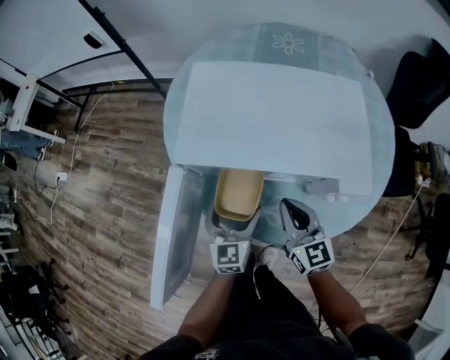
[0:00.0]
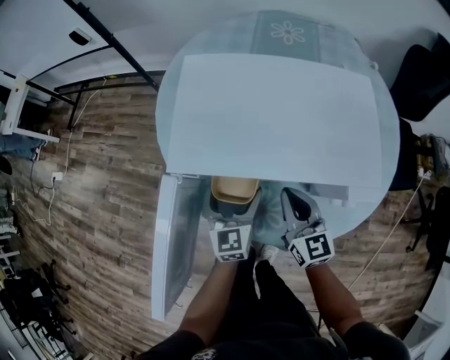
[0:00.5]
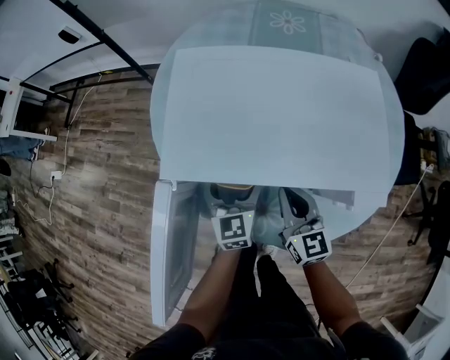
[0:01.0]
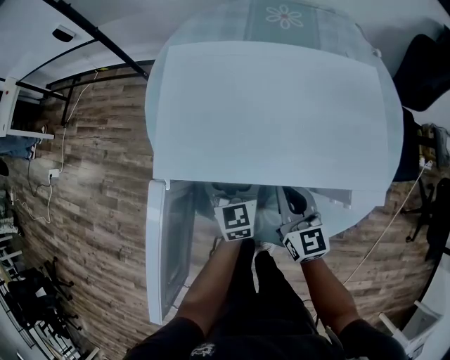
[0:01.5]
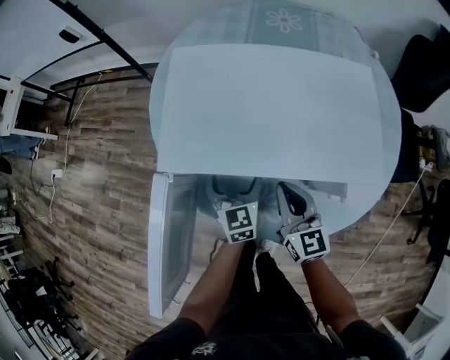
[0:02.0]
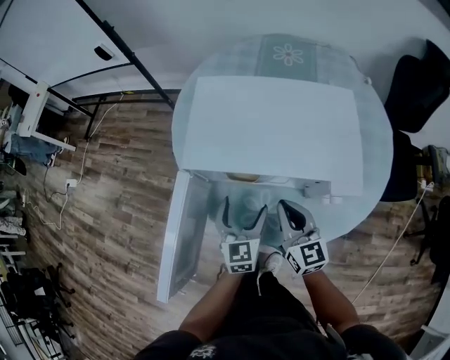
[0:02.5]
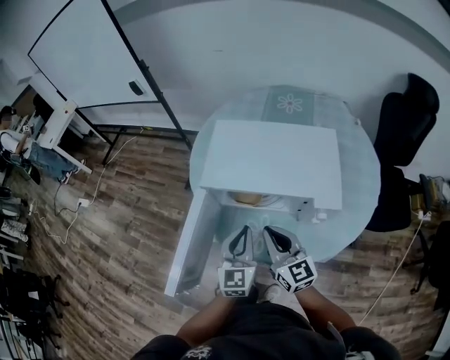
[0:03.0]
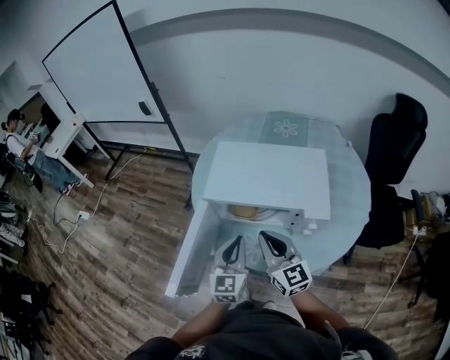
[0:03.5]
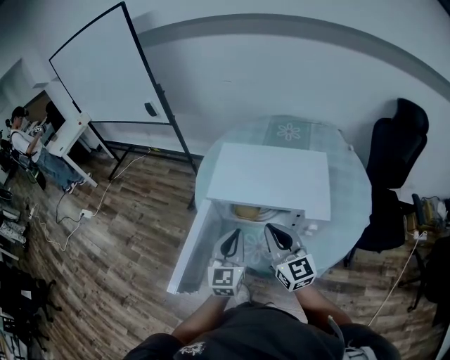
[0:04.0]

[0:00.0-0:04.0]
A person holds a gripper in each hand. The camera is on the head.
0:00.0 to 0:02.0: The right gripper shifts by approximately 5 cm. The left gripper travels forward by some 10 cm.
0:02.0 to 0:04.0: Both grippers travel together upward and backward, approximately 25 cm. The right gripper changes its angle by roughly 20 degrees. Meanwhile the left gripper closes up.

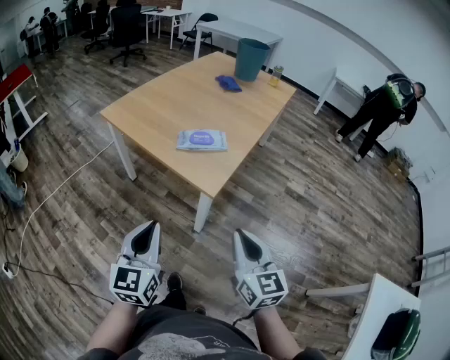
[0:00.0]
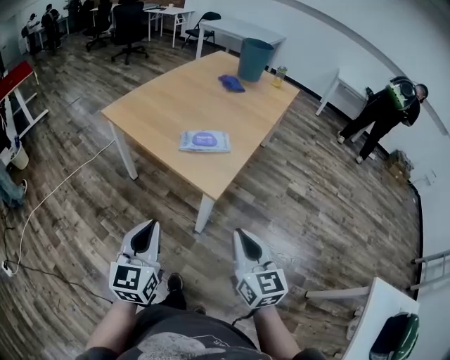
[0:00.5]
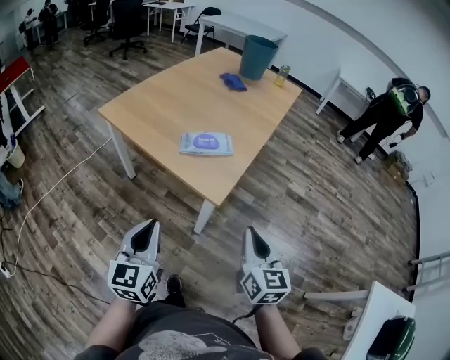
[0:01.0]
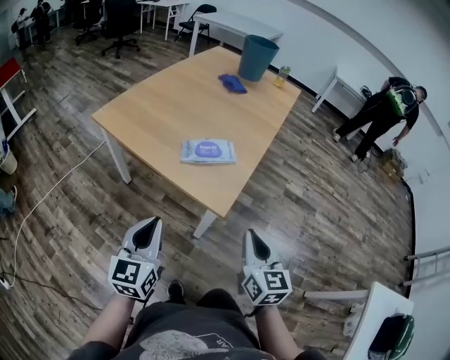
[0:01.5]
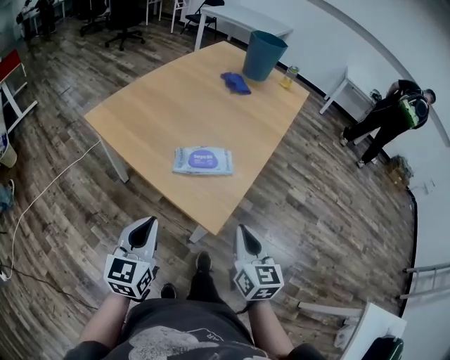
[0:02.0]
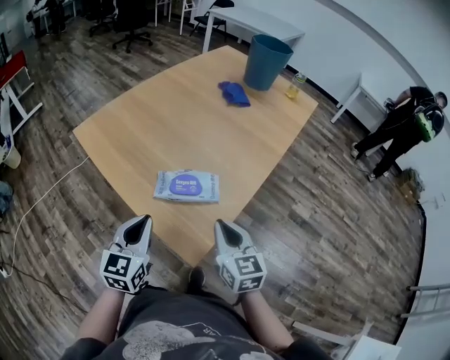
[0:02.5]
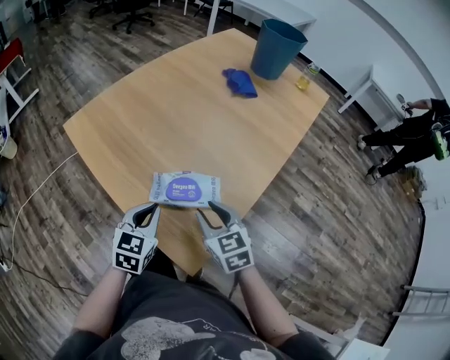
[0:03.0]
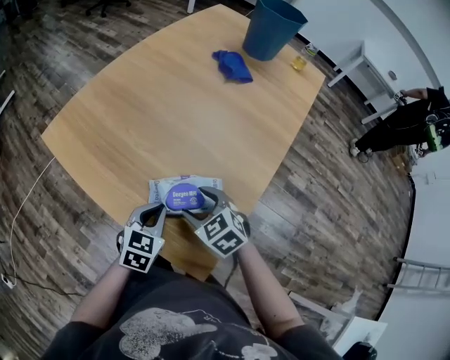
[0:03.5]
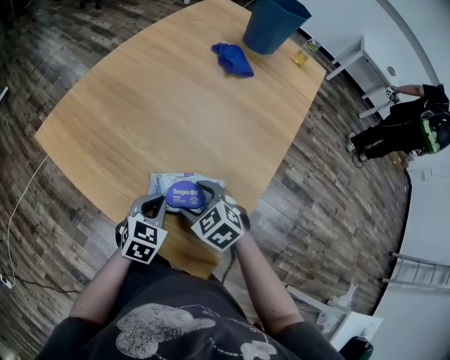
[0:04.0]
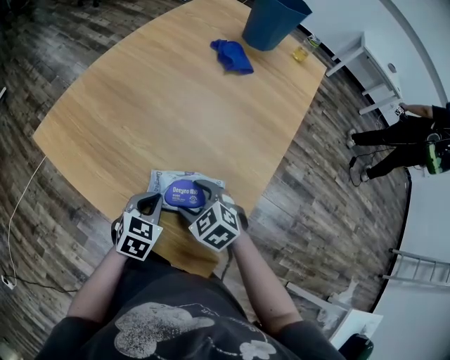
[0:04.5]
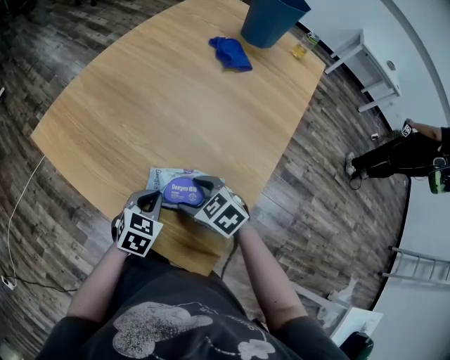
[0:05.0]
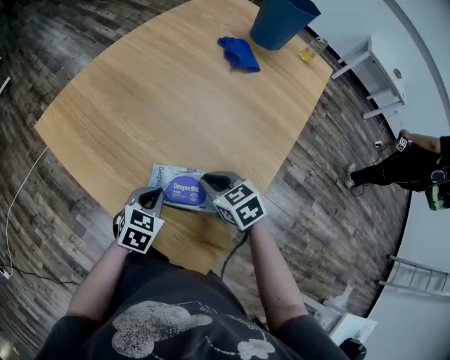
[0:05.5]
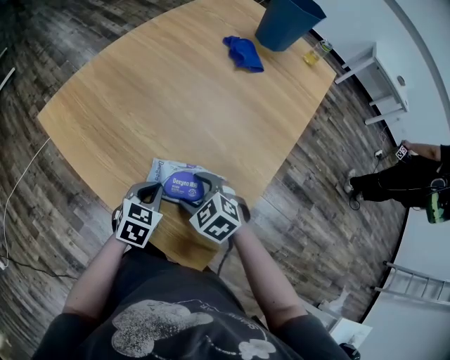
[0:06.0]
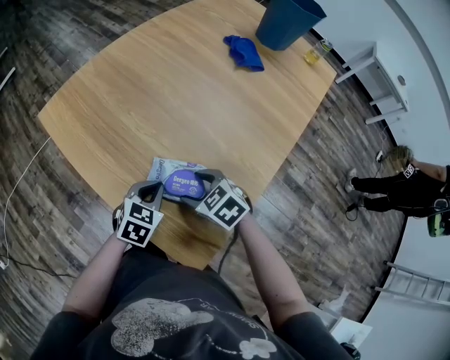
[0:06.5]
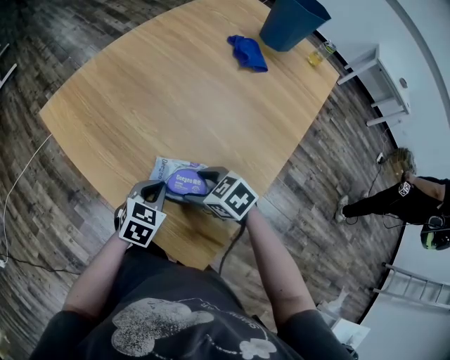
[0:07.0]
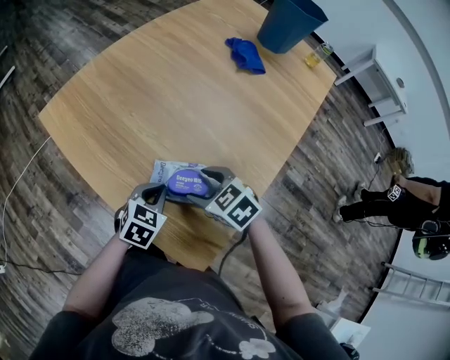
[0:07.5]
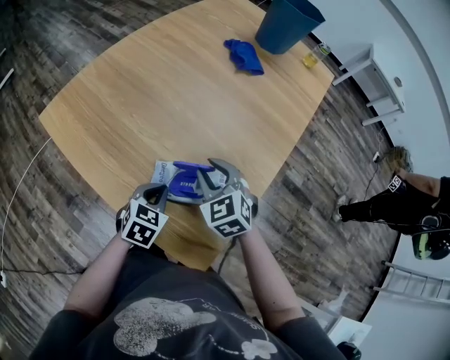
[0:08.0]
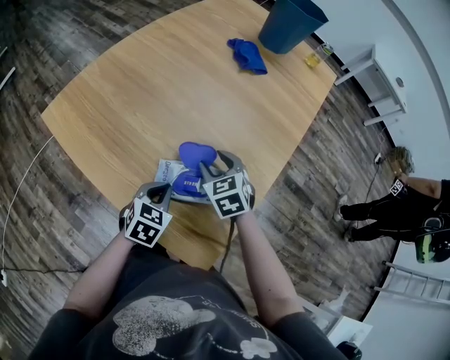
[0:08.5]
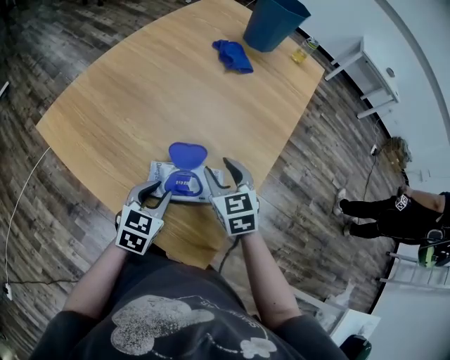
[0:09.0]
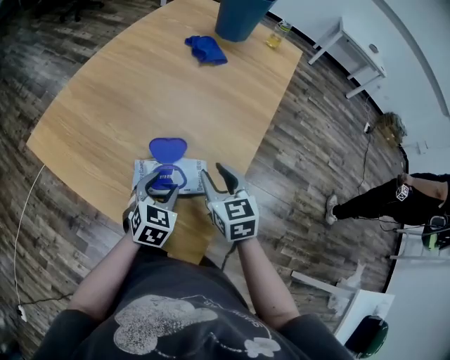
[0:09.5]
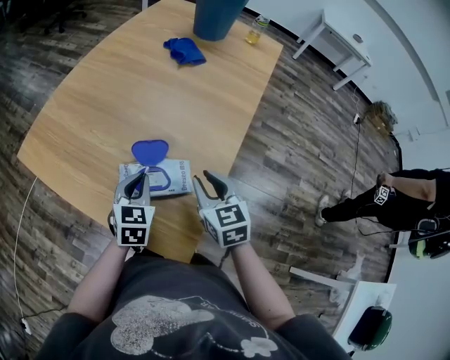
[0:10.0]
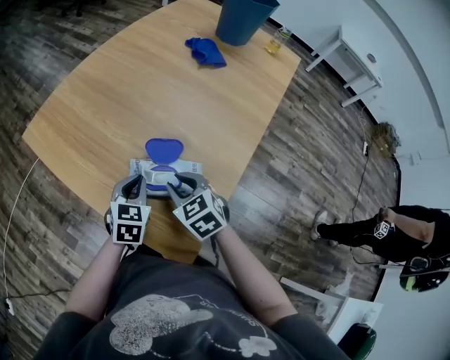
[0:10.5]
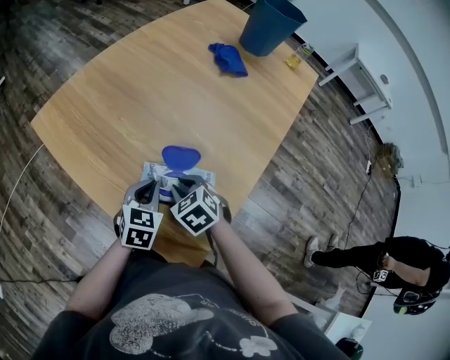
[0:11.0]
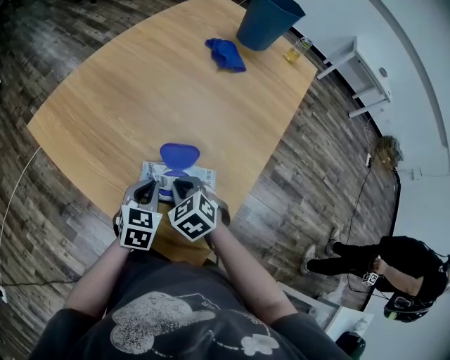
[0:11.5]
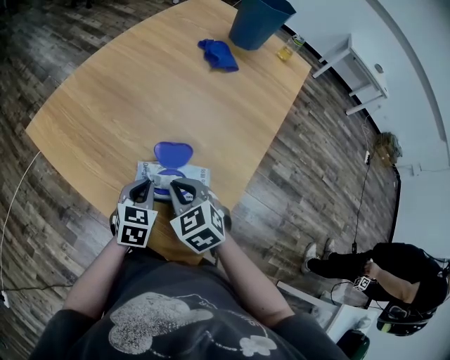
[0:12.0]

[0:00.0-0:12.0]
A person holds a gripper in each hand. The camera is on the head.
0:00.0 to 0:02.0: Both grippers travel together forward, some 20 cm.
0:02.0 to 0:04.0: Both grippers move forward and downward, some 30 cm. The left gripper angles its fingers downward, by approximately 30 degrees. Meanwhile the right gripper angles its fingers downward, by about 40 degrees, and opens up.
0:04.0 to 0:06.0: The right gripper closes, then reopens.
0:06.0 to 0:08.0: The right gripper moves some 10 cm, rotates approximately 20 degrees, and closes its fingers.
0:08.0 to 0:10.0: The left gripper goes about 5 cm upward, and opens, then closes once more; the right gripper shifts approximately 10 cm to the right and backward, and rotates roughly 30 degrees.
0:10.0 to 0:12.0: The right gripper moves to the left, roughly 15 cm, and turns by roughly 30 degrees. The left gripper changes place by approximately 5 cm.

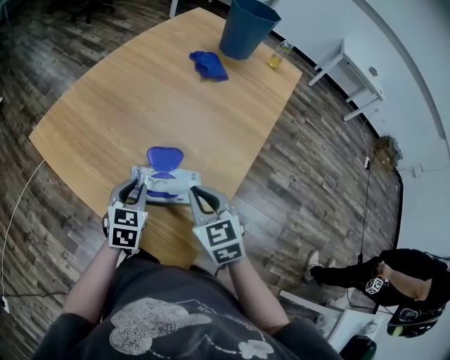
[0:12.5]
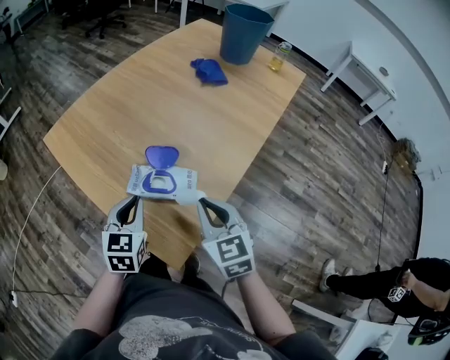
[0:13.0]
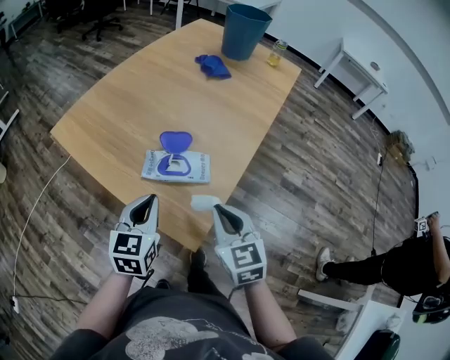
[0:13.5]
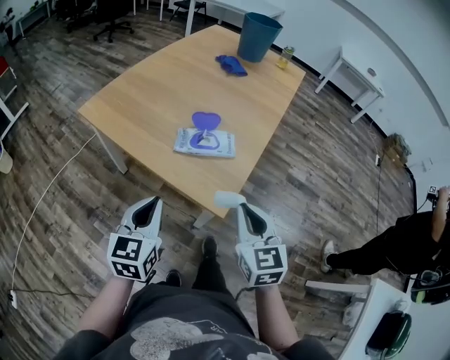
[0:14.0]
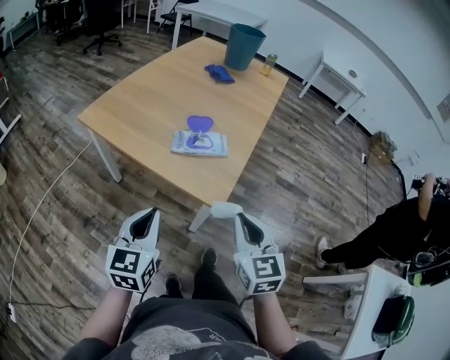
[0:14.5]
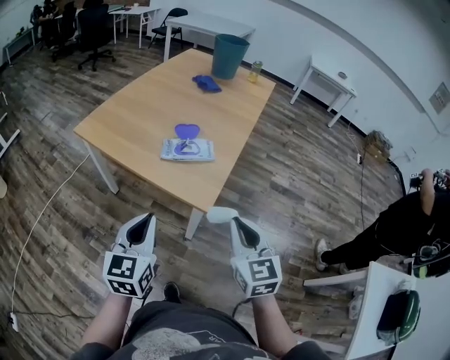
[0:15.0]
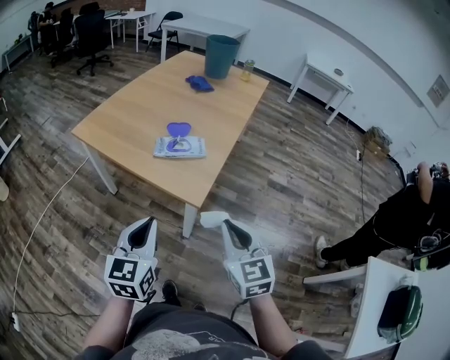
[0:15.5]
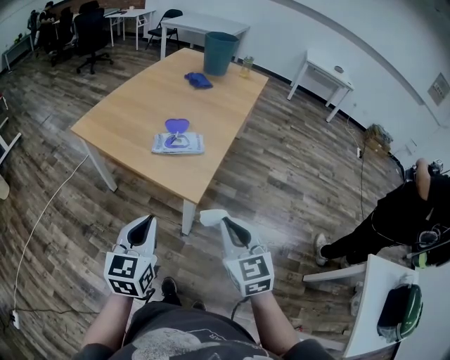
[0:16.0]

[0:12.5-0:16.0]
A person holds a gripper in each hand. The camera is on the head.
0:12.5 to 0:14.5: The left gripper goes approximately 35 cm backward and upward, and swivels approximately 20 degrees. The right gripper heads backward, covering about 30 cm, and turns by some 20 degrees.
0:14.5 to 0:16.0: The left gripper goes approximately 10 cm to the right and backward. The right gripper is displaced backward and to the right by approximately 10 cm.

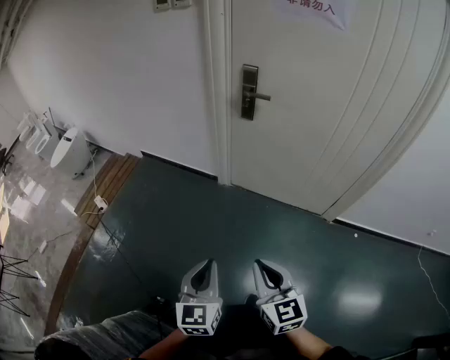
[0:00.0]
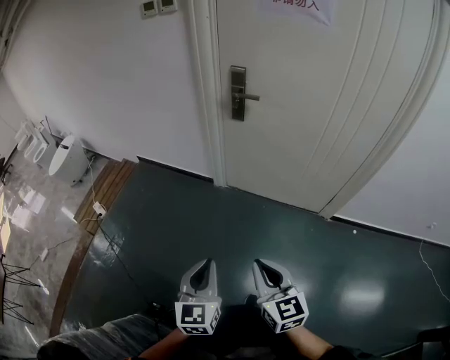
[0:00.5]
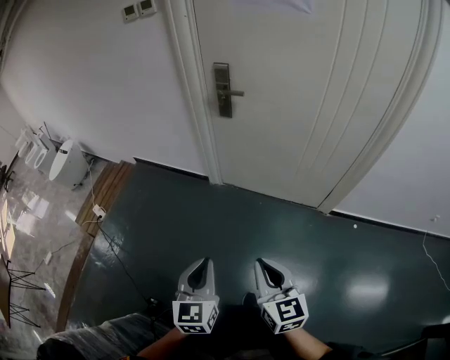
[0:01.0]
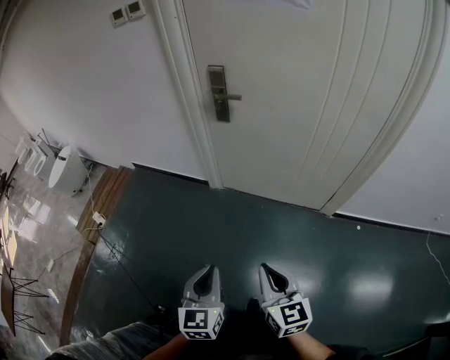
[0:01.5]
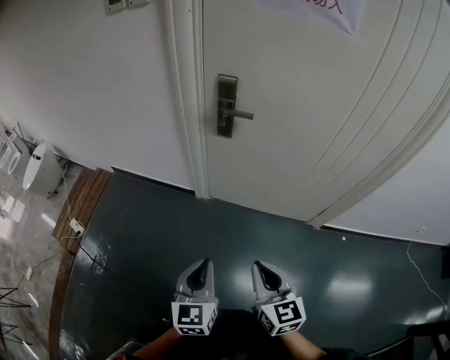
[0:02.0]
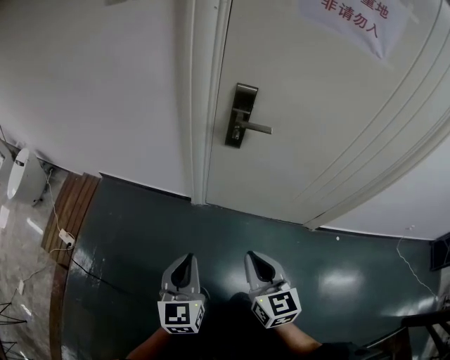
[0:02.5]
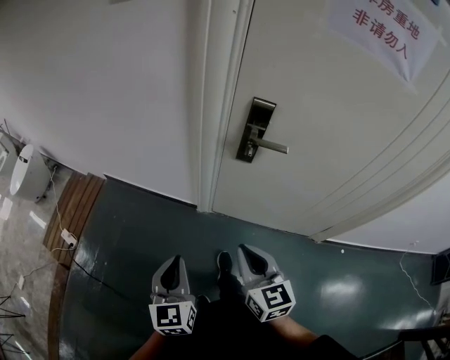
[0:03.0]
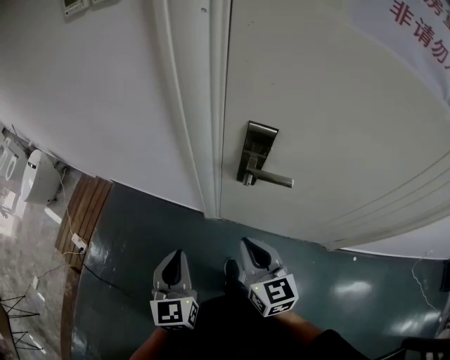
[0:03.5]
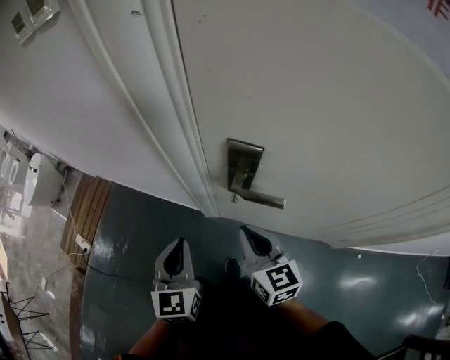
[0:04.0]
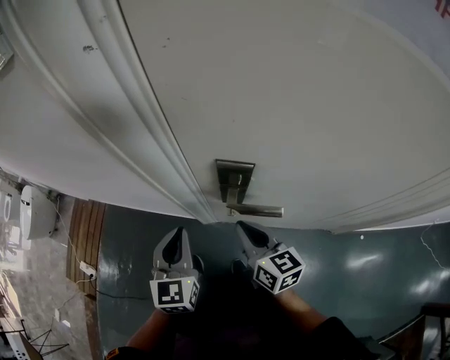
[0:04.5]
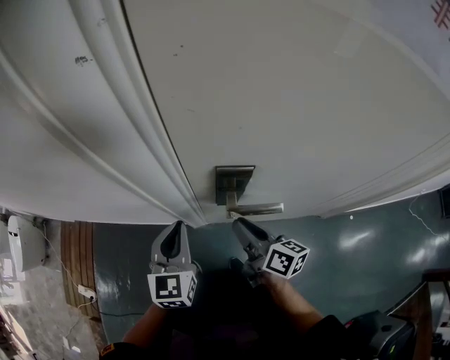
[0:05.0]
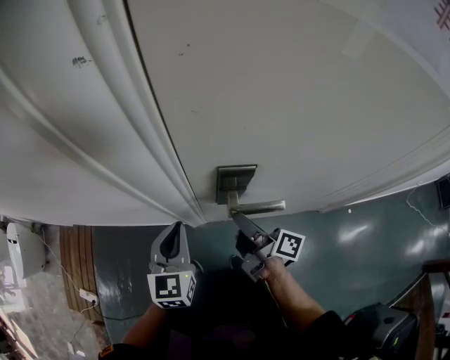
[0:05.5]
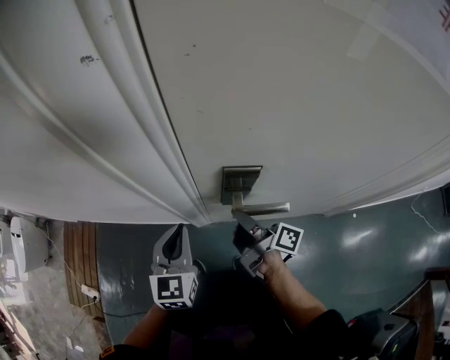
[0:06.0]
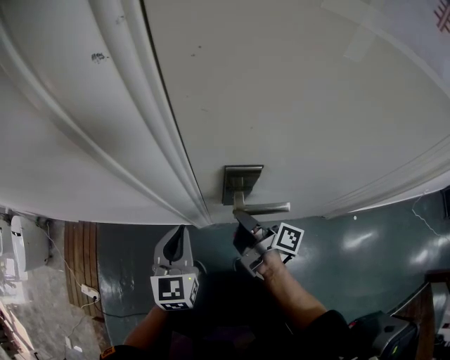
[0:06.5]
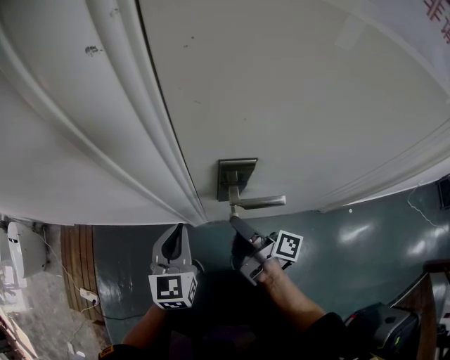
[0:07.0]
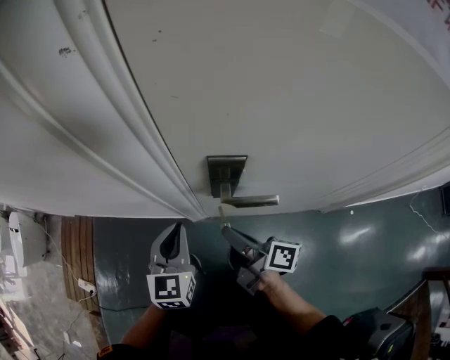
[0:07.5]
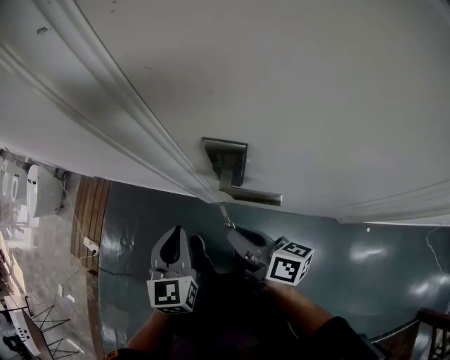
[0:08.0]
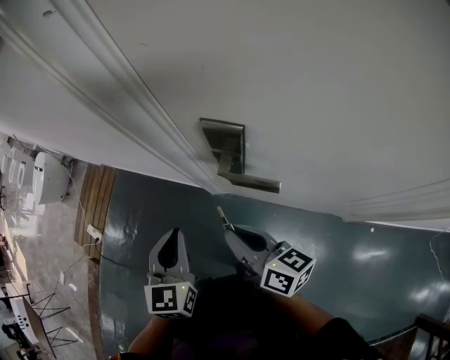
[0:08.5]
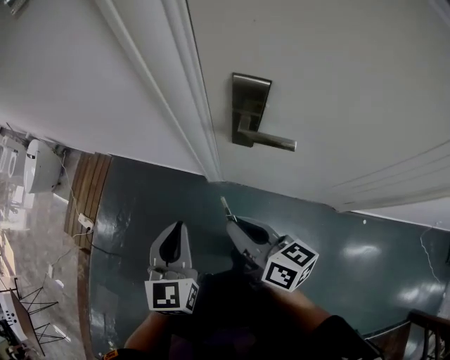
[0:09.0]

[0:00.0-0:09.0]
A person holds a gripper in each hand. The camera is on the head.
0:00.0 to 0:02.0: The grippers both shift forward by some 20 cm.
0:02.0 to 0:04.5: Both grippers are carried forward, about 50 cm.
0:04.5 to 0:07.0: The right gripper rolls clockwise, seen from behind, by roughly 60 degrees.
0:07.0 to 0:09.0: The left gripper moves backward, roughly 20 cm. Meanwhile the right gripper goes roughly 15 cm backward and to the left, and rotates around the line of its fingers by approximately 40 degrees, counterclockwise from behind.
